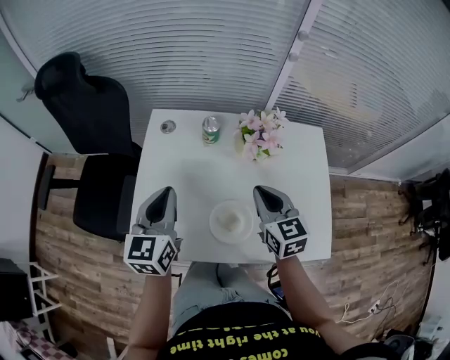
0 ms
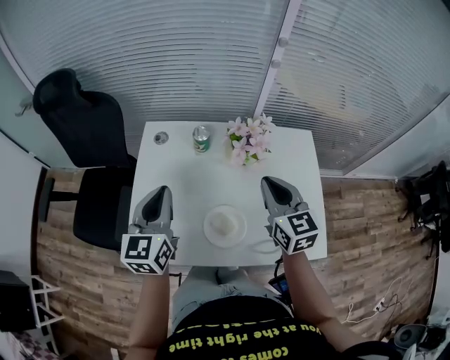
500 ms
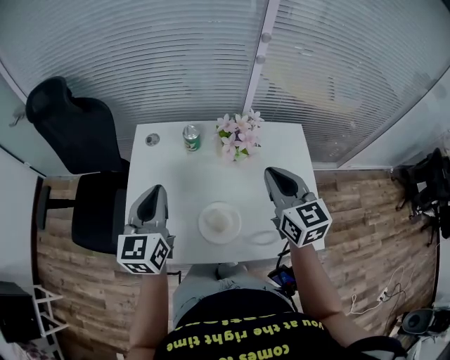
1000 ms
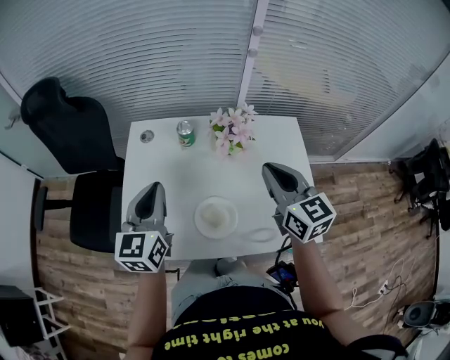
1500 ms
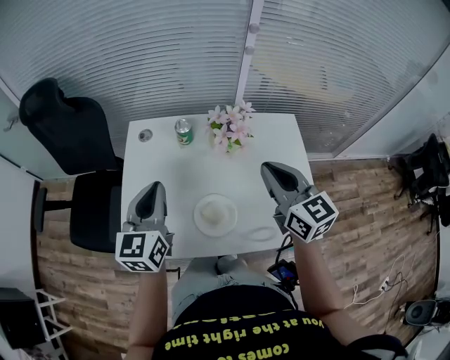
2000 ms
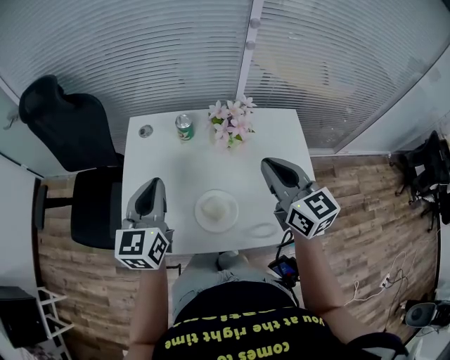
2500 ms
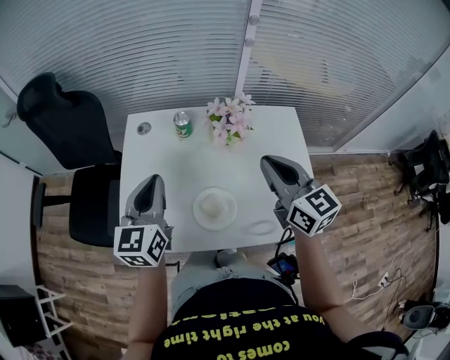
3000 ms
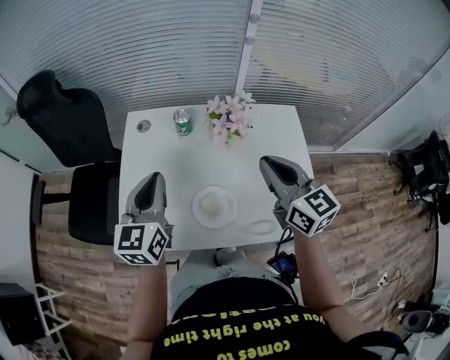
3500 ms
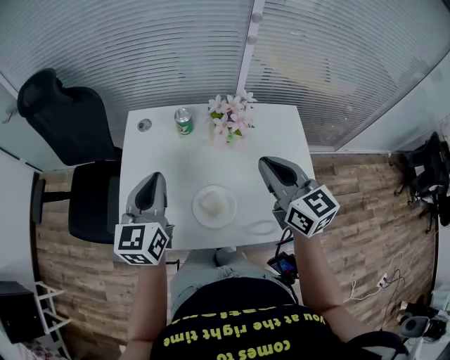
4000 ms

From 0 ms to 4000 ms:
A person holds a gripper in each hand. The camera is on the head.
From 0 ms to 2000 ms: The right gripper heads upward and to the right, covering about 15 cm. Meanwhile the left gripper moves some 5 cm.
From 2000 ms to 4000 ms: The two grippers keep their place.

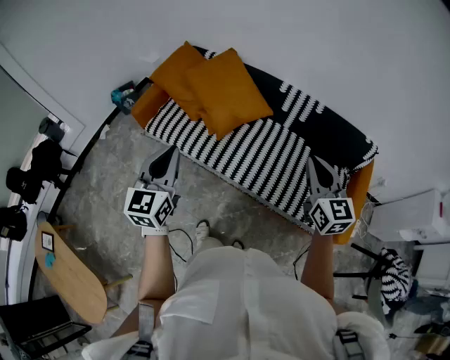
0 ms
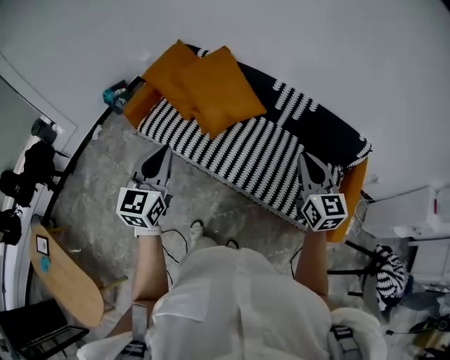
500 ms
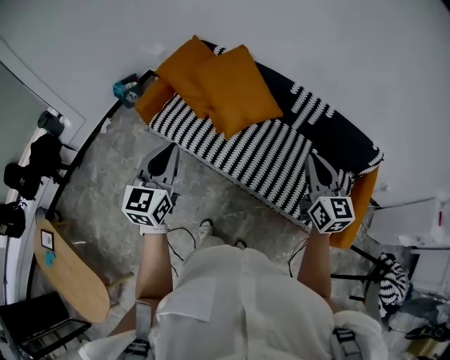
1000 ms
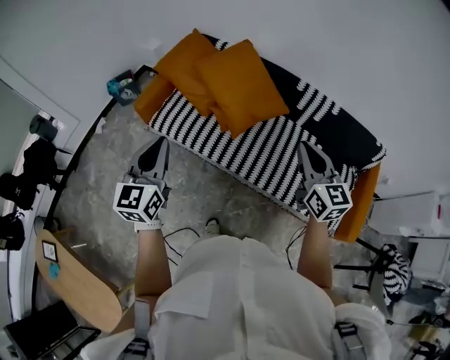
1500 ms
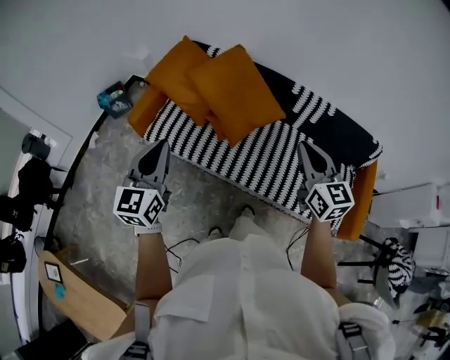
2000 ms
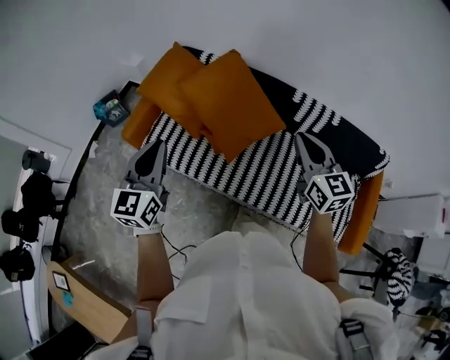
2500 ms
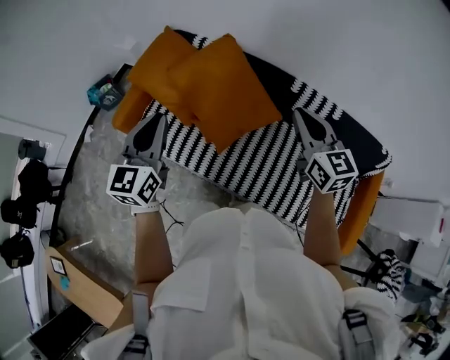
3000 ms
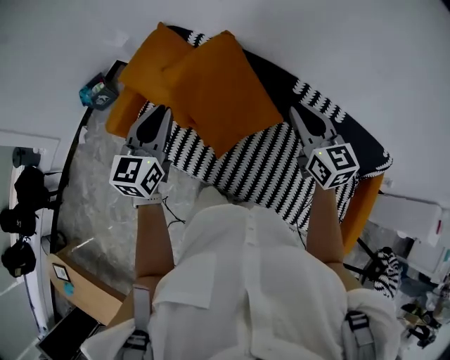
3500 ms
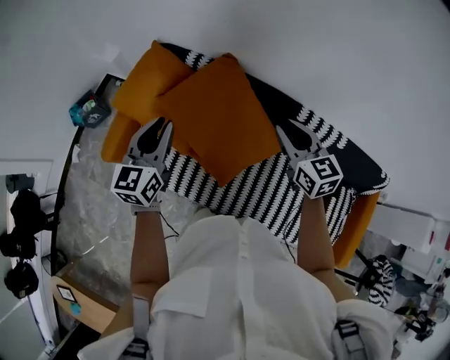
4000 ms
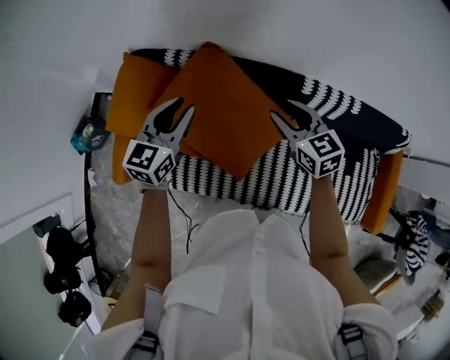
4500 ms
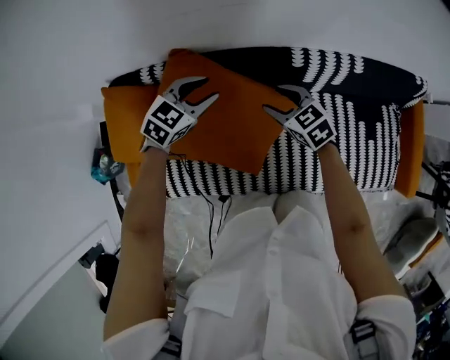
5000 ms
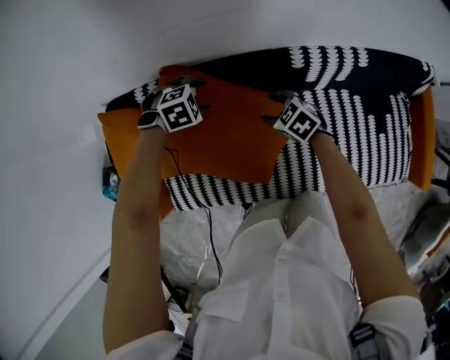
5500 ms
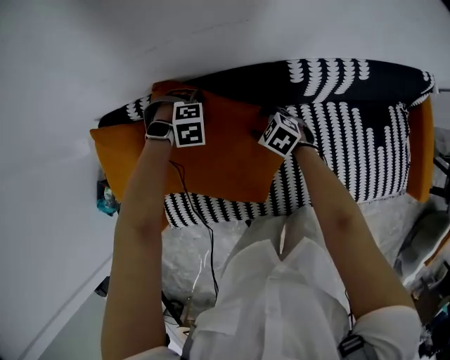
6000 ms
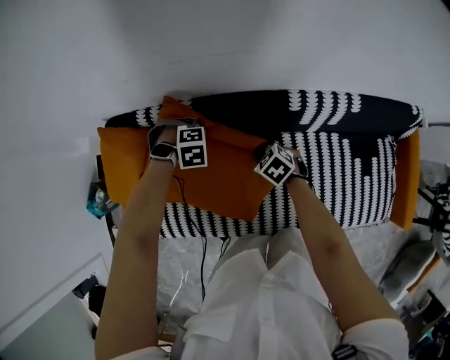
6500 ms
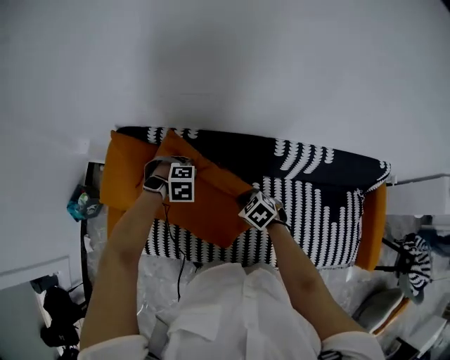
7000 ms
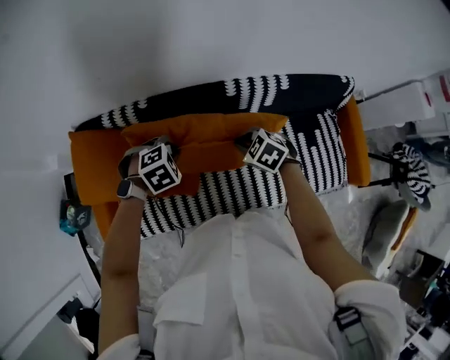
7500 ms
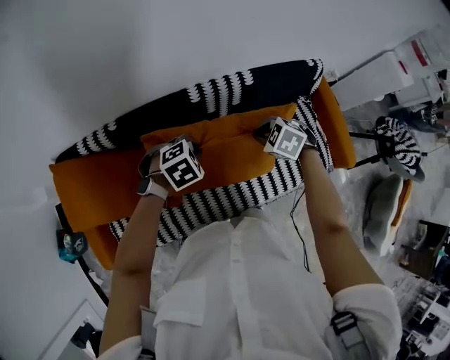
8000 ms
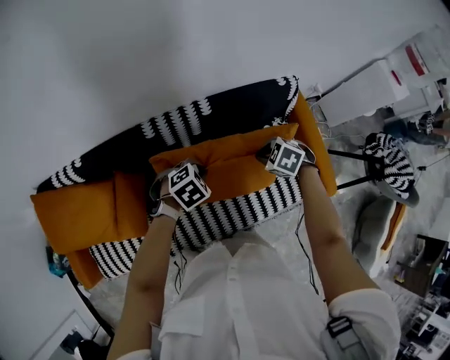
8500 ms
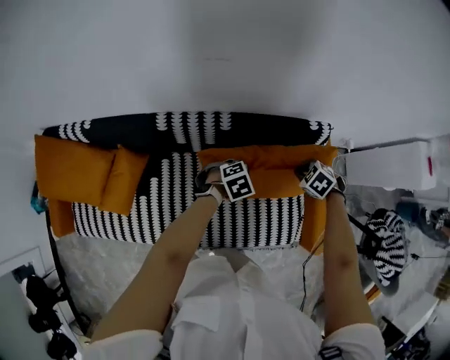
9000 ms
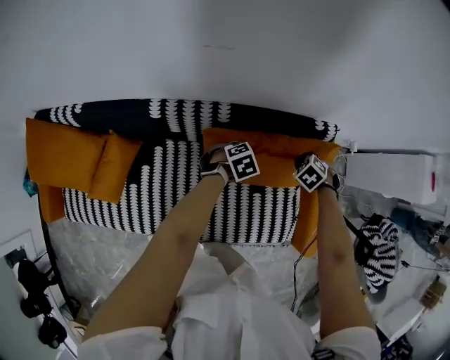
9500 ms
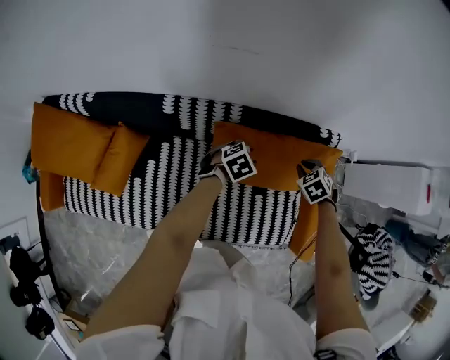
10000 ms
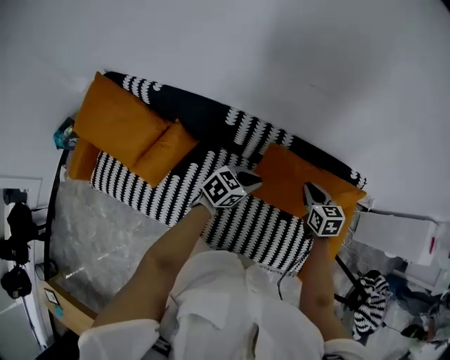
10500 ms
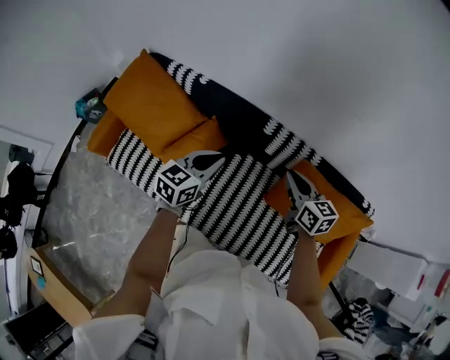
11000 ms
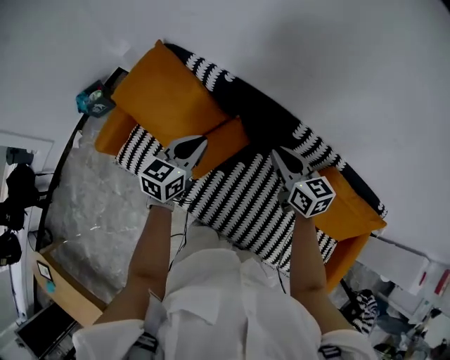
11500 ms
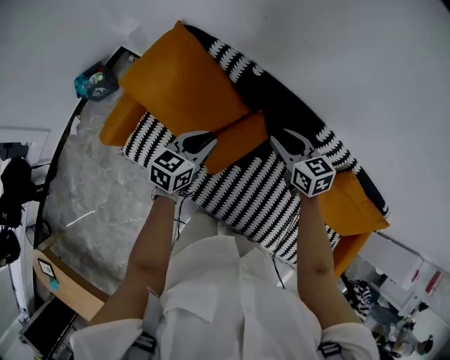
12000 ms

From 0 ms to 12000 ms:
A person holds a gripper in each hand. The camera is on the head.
From 0 ms to 2000 ms: The grippers both shift to the left and forward by about 25 cm.
From 2000 ms to 4000 ms: The grippers both shift forward by approximately 40 cm.
From 4000 ms to 6000 ms: Both grippers move downward, roughly 35 cm. The left gripper tilts its fingers roughly 80 degrees downward, and opens. Meanwhile the right gripper angles its fingers downward, by about 40 degrees, and opens.
From 6000 ms to 8000 ms: The left gripper changes place by roughly 35 cm, swivels roughly 30 degrees, and closes up. Meanwhile the right gripper ends up some 35 cm from where it was, and closes up.
From 8000 ms to 10000 ms: The pair of grippers is taken roughly 40 cm. The left gripper rotates approximately 30 degrees, and opens up.
From 10000 ms to 12000 ms: Both grippers are carried roughly 70 cm. The left gripper tips its fingers upward by roughly 30 degrees. Meanwhile the right gripper points its fingers approximately 40 degrees further upward.

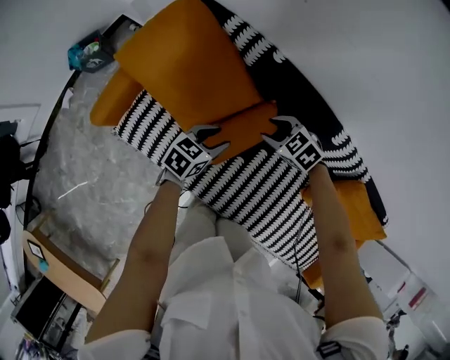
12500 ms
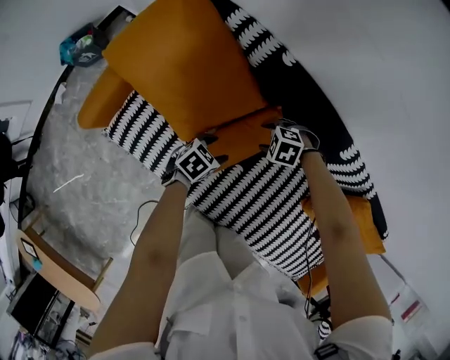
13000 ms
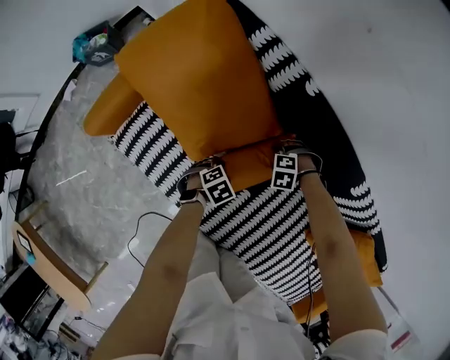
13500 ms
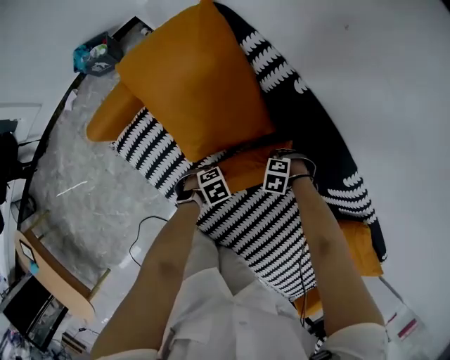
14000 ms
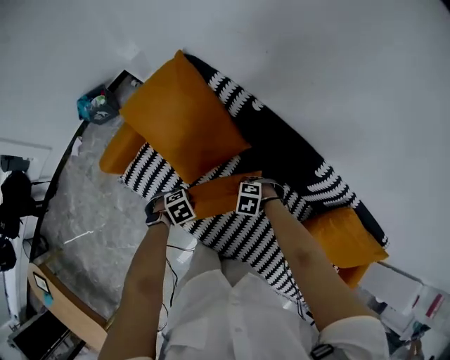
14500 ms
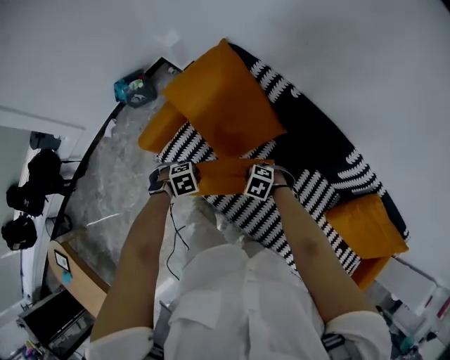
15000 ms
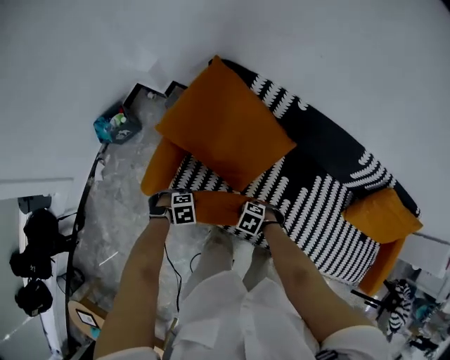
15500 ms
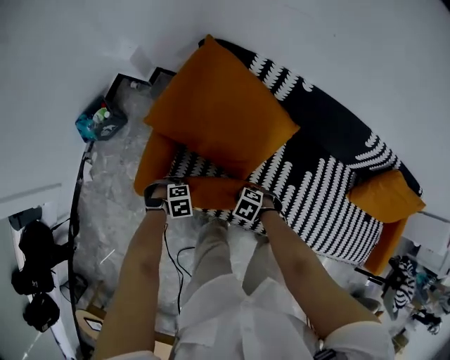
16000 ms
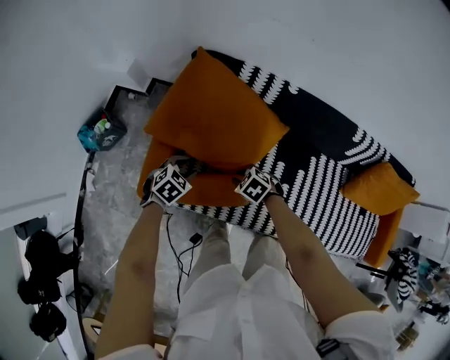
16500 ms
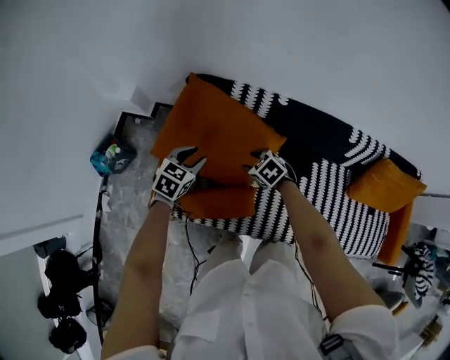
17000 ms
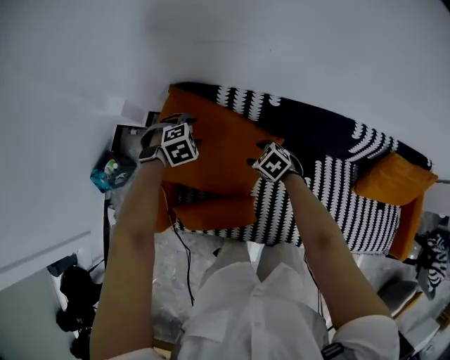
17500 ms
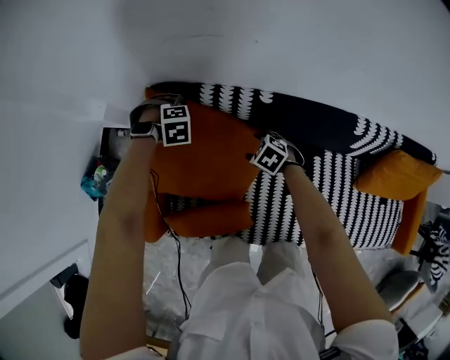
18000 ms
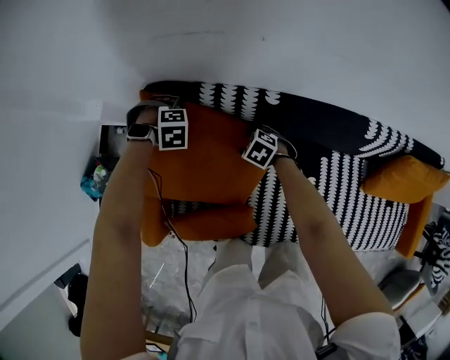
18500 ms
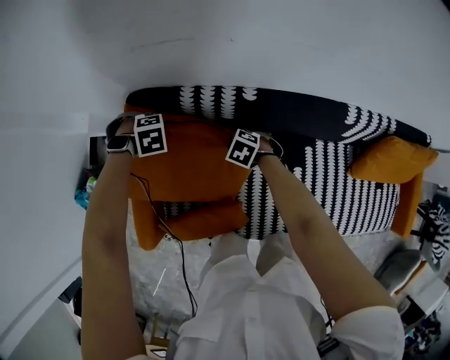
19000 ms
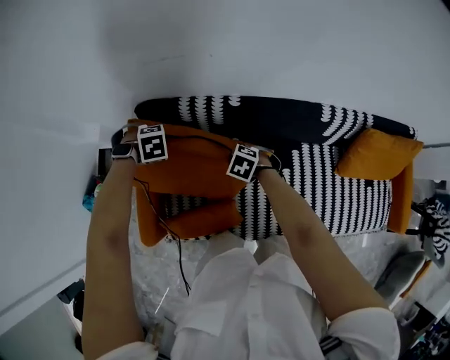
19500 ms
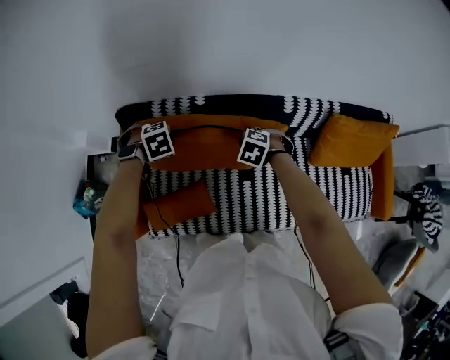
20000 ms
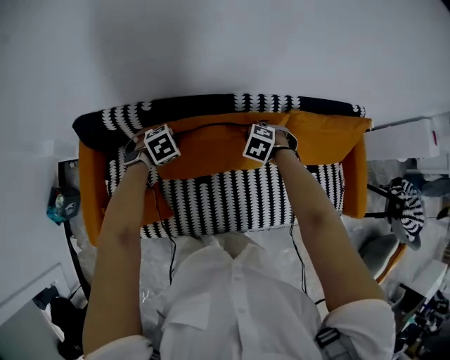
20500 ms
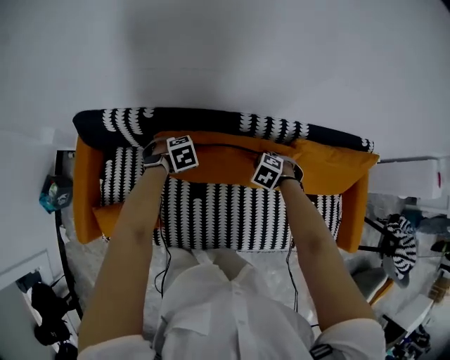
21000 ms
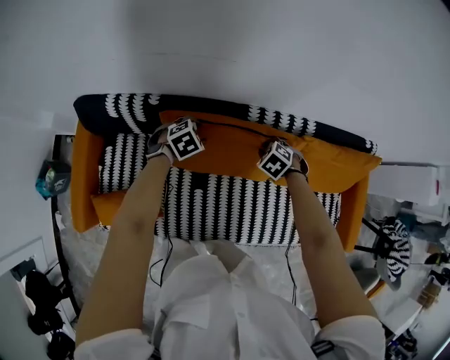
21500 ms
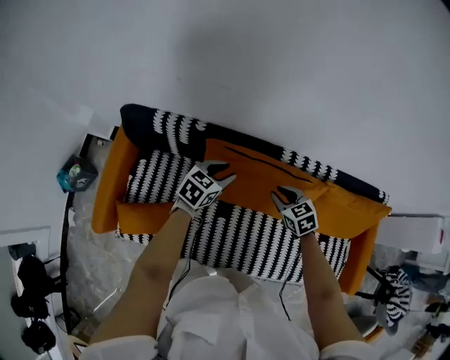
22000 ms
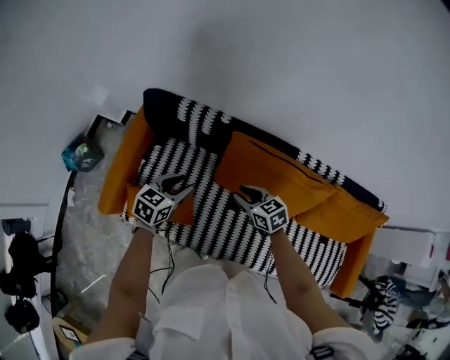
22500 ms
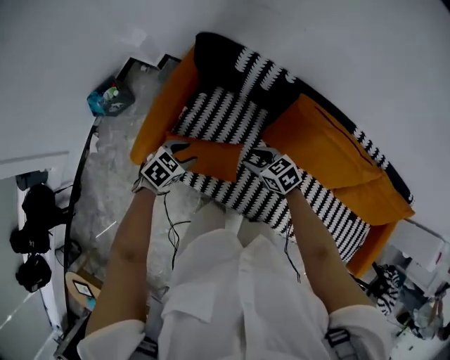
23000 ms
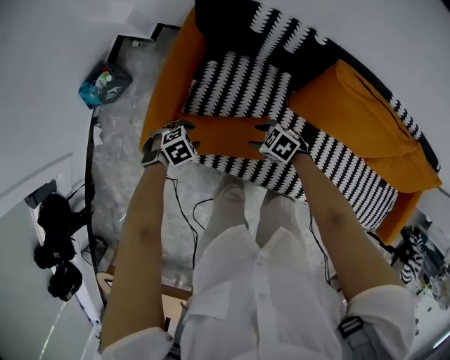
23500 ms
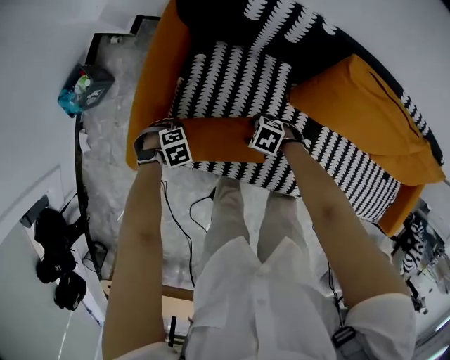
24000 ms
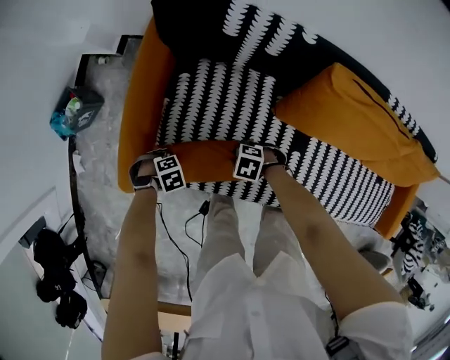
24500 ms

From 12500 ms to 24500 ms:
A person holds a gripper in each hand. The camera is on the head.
From 12500 ms to 14500 ms: The left gripper goes downward and returns, roughly 20 cm each way, and tips its fingers downward by roughly 40 degrees; the right gripper reaches roughly 25 cm downward, then returns, rotates about 30 degrees, and closes its fingers.
From 14500 ms to 16500 ms: The right gripper moves up and down over roughly 15 cm, changing direction 2 times, and rolls clockwise, seen from behind, by some 40 degrees; the left gripper goes up and down, approximately 15 cm each way, reversing 2 times, and turns by roughly 20 degrees.
From 16500 ms to 18500 ms: The left gripper goes upward and returns, some 10 cm each way, rotates around the line of its fingers by roughly 50 degrees, clockwise from behind, and opens up, while the right gripper shifts by approximately 25 cm, and opens its fingers.
From 18500 ms to 20500 ms: The pair of grippers is taken roughly 40 cm. The left gripper changes its angle by approximately 30 degrees, and closes. The right gripper closes.
From 20500 ms to 22500 ms: The right gripper moves some 25 cm, points its fingers some 40 degrees further upward, and opens up; the left gripper moves approximately 25 cm, tilts its fingers about 40 degrees upward, and opens.
From 22500 ms to 24500 ms: Both grippers travel together downward, roughly 30 cm. The left gripper angles its fingers downward, by approximately 40 degrees, while the right gripper swivels roughly 60 degrees, and opens, then closes again.
